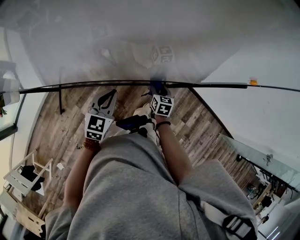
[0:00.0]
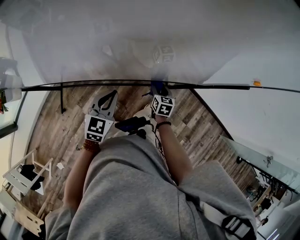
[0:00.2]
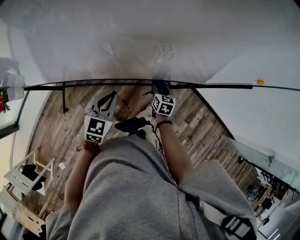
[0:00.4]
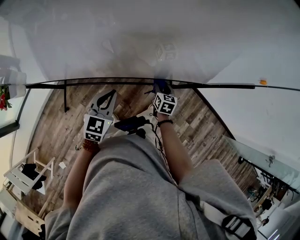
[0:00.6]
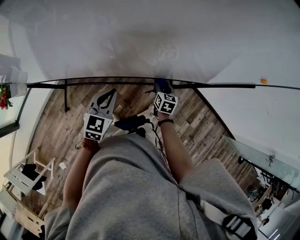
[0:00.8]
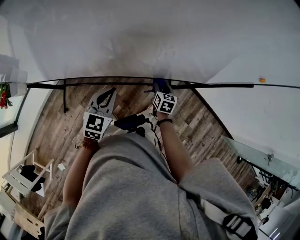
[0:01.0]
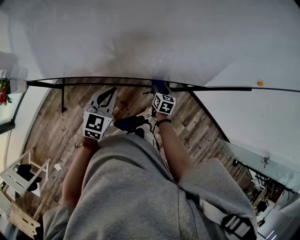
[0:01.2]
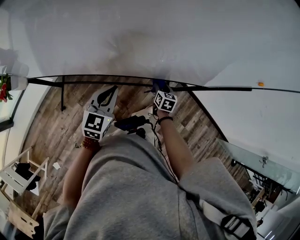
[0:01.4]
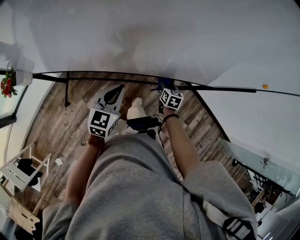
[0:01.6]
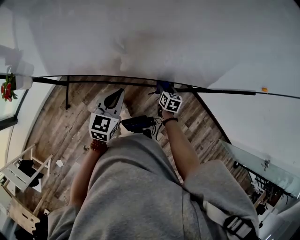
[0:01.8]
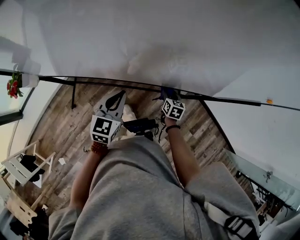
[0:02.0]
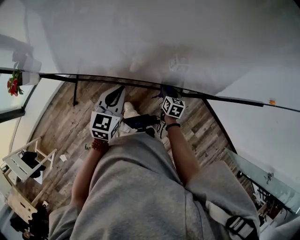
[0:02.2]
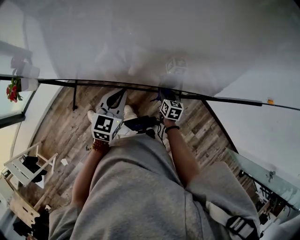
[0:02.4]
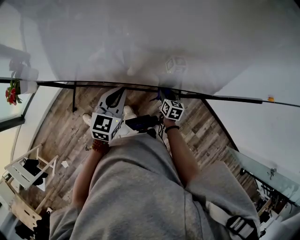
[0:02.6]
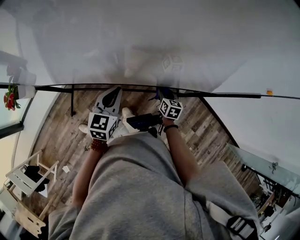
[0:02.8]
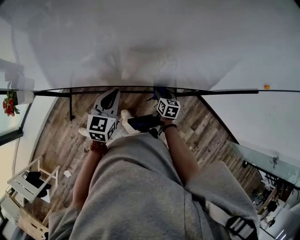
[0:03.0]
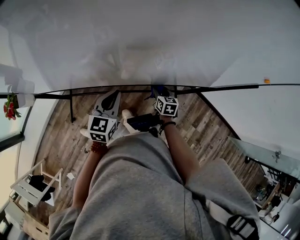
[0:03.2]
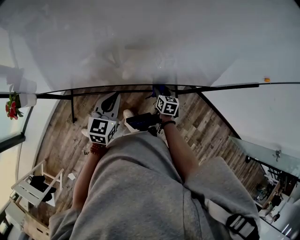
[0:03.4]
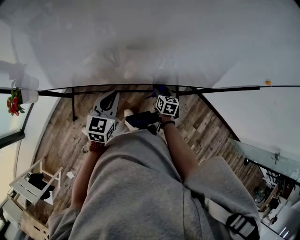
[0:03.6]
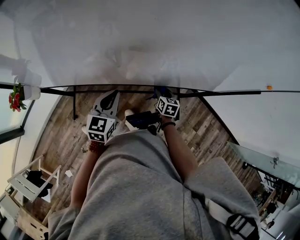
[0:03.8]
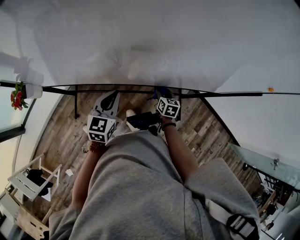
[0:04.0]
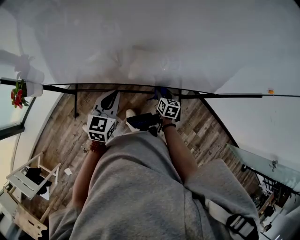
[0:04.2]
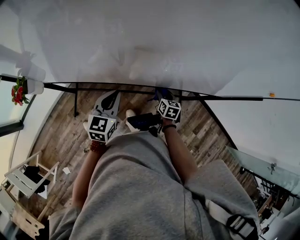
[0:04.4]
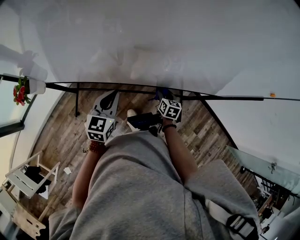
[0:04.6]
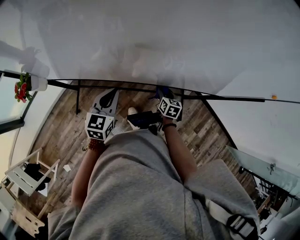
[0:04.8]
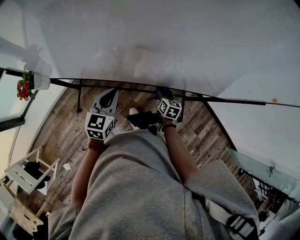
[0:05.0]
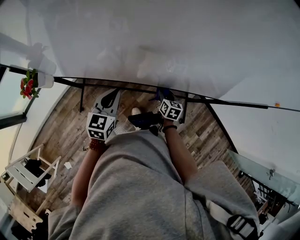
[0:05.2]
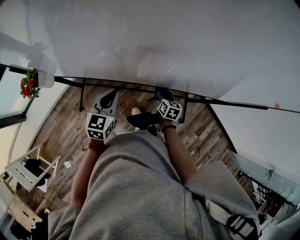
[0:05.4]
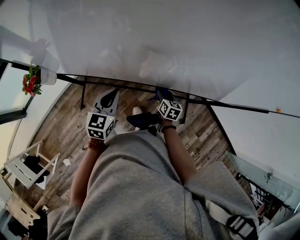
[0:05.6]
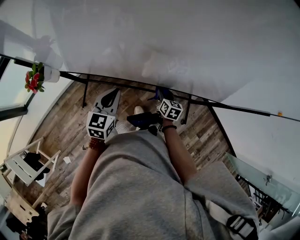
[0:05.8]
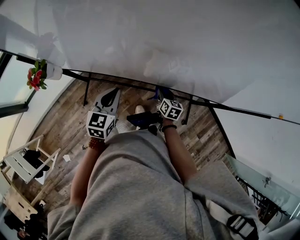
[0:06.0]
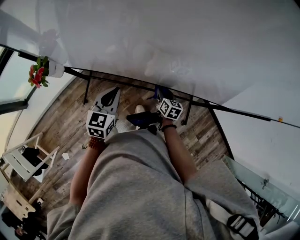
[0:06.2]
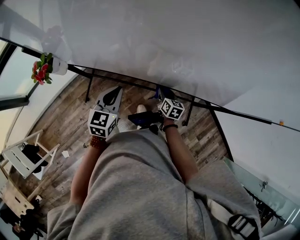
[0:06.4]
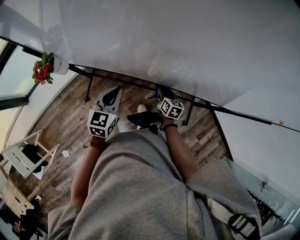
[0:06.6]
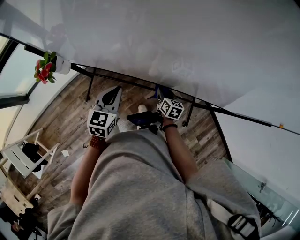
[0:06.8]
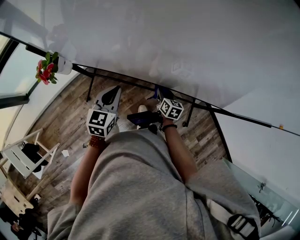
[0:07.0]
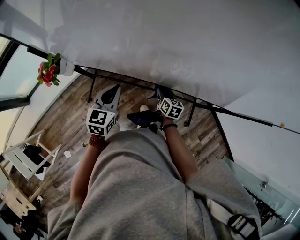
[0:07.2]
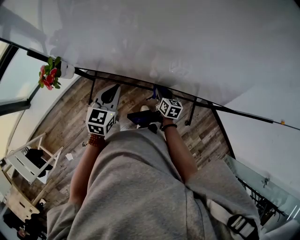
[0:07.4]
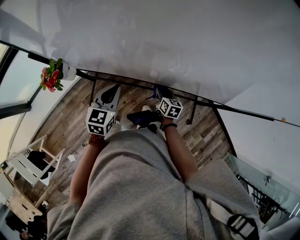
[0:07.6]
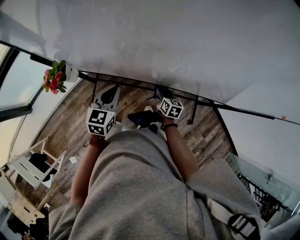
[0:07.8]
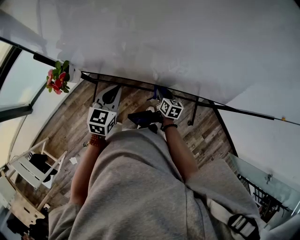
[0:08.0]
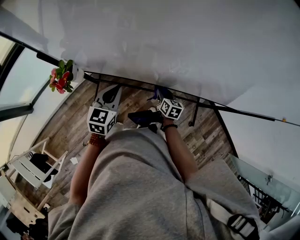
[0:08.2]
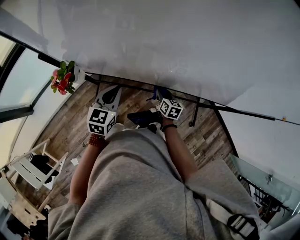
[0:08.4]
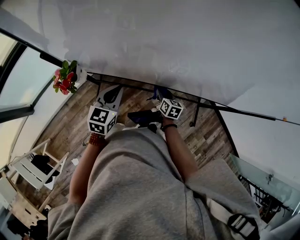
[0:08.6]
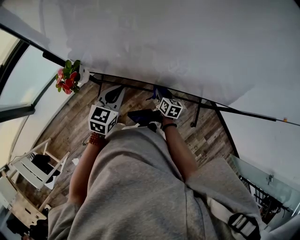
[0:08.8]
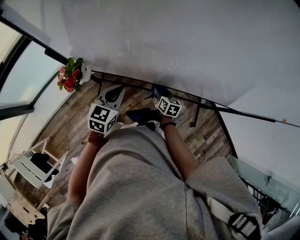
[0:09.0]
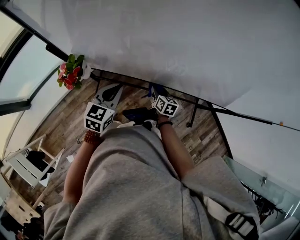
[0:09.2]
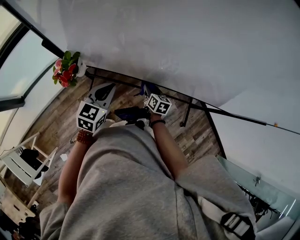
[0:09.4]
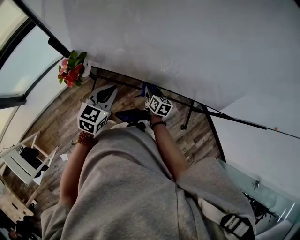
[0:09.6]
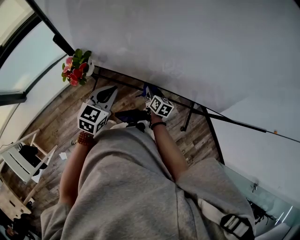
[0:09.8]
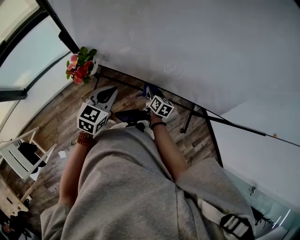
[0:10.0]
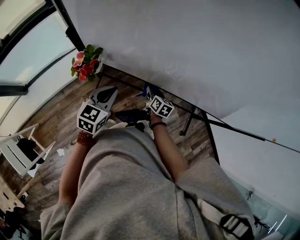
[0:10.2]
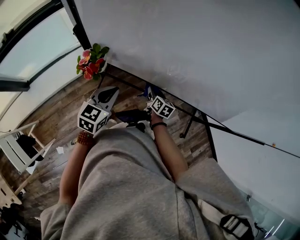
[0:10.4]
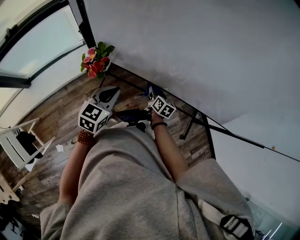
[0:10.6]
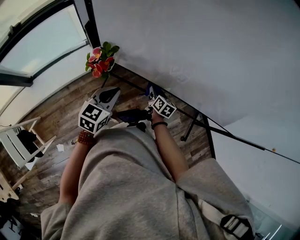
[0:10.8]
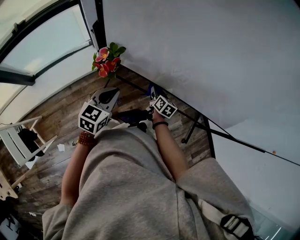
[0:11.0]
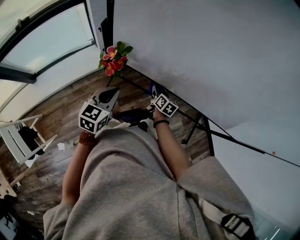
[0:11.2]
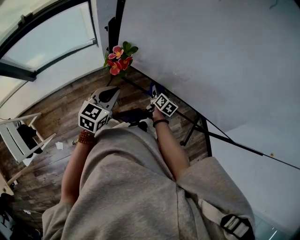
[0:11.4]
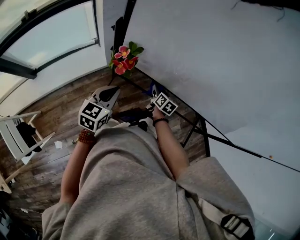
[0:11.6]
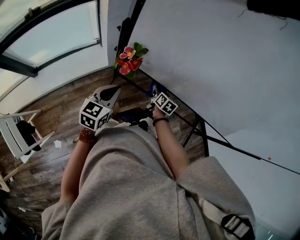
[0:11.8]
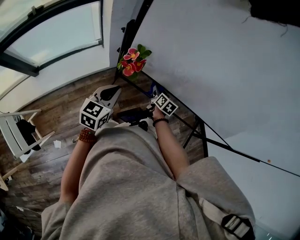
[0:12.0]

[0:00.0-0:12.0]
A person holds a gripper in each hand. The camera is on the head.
0.0 to 1.6 s: Both grippers move to the left, about 10 cm.
1.6 to 3.0 s: The grippers move only a little.
3.0 to 4.4 s: The two grippers go some 5 cm to the left.
4.4 to 6.0 s: Both grippers move to the left, approximately 10 cm.
6.0 to 7.6 s: Both grippers travel together to the left, approximately 10 cm.
7.6 to 9.0 s: The left gripper heads to the left, covering roughly 5 cm. Meanwhile the right gripper is displaced to the left by about 10 cm.
9.0 to 10.4 s: Both grippers travel together to the left, approximately 10 cm.
10.4 to 12.0 s: The two grippers go some 10 cm to the left.

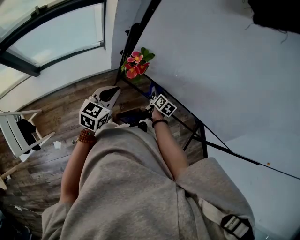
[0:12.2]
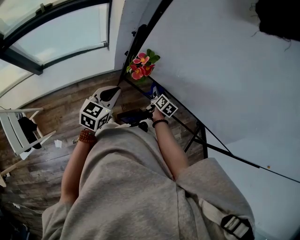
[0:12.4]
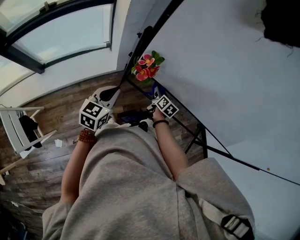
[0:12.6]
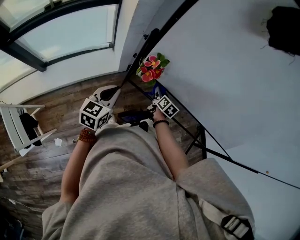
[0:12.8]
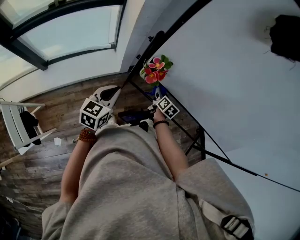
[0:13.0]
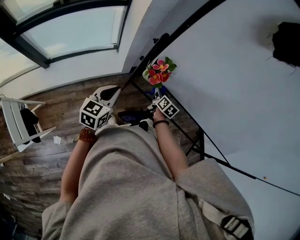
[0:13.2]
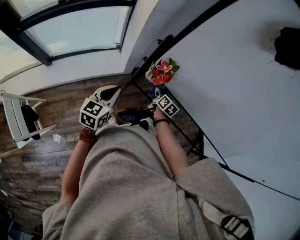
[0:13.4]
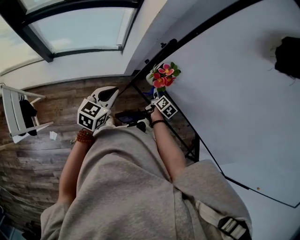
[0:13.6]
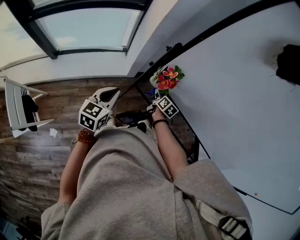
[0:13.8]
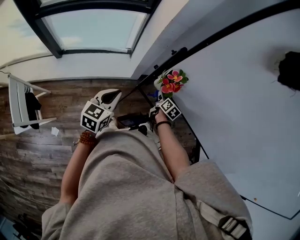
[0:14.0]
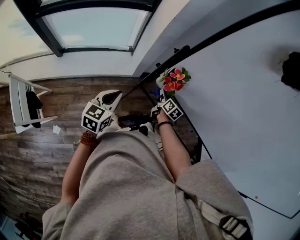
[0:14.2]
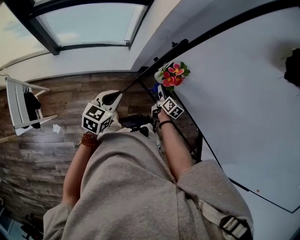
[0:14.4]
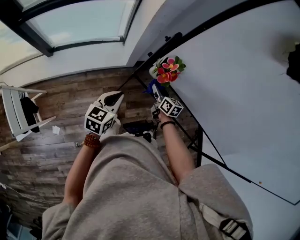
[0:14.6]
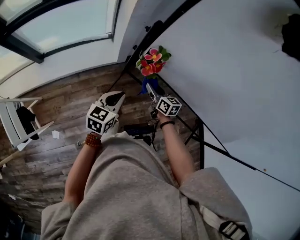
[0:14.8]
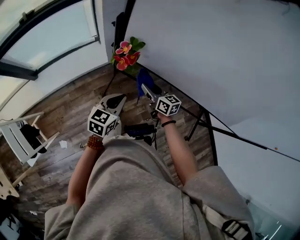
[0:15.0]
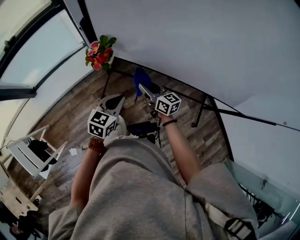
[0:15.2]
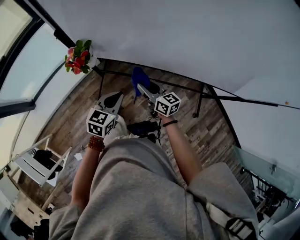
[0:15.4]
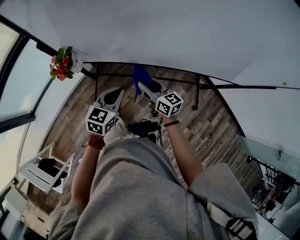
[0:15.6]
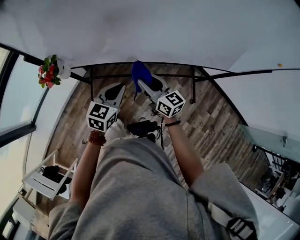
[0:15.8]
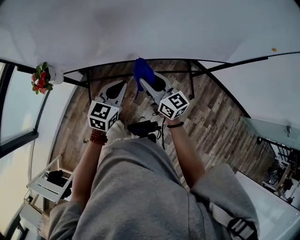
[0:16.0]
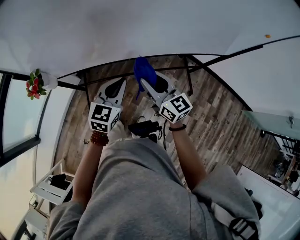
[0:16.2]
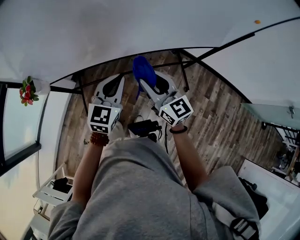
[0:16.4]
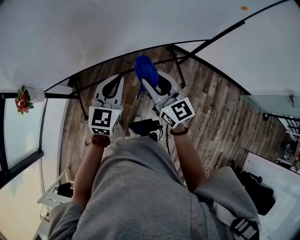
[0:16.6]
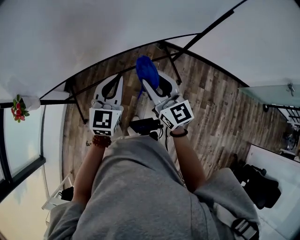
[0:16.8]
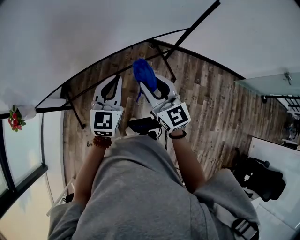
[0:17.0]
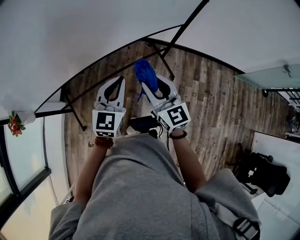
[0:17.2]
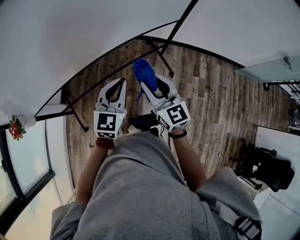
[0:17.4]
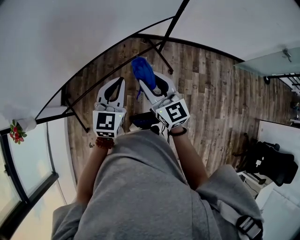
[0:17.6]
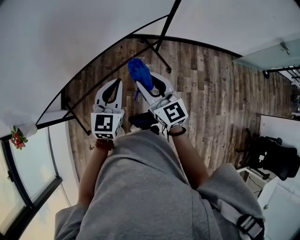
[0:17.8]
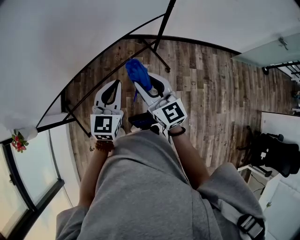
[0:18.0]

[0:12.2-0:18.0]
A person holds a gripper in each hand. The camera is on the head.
12.2 to 13.6 s: The two grippers go some 10 cm to the left.
13.6 to 15.0 s: The right gripper goes some 10 cm backward and upward, and swivels roughly 30 degrees; the left gripper heads to the right, covering some 15 cm.
15.0 to 16.6 s: The pair of grippers is taken roughly 40 cm. The right gripper changes its angle by some 50 degrees, while the left gripper rotates roughly 40 degrees.
16.6 to 18.0 s: The grippers both shift to the right by roughly 15 cm.

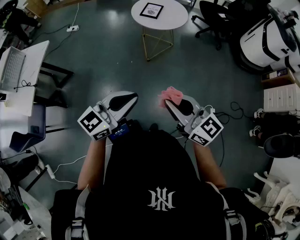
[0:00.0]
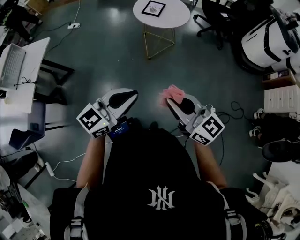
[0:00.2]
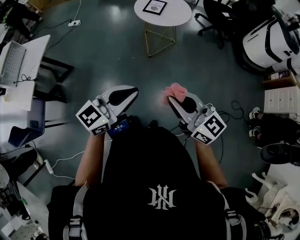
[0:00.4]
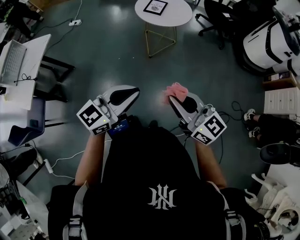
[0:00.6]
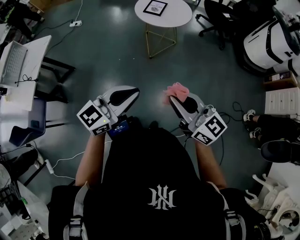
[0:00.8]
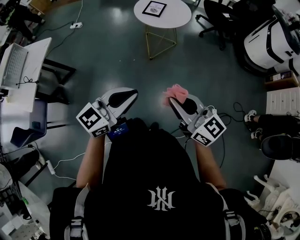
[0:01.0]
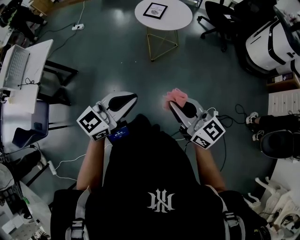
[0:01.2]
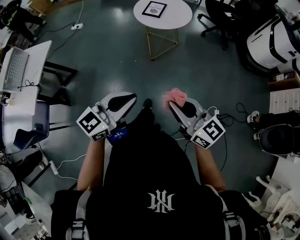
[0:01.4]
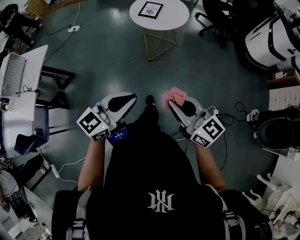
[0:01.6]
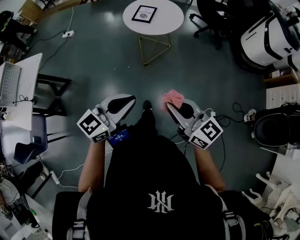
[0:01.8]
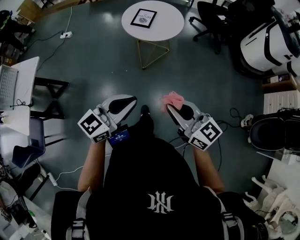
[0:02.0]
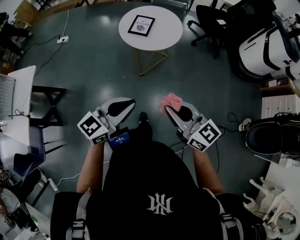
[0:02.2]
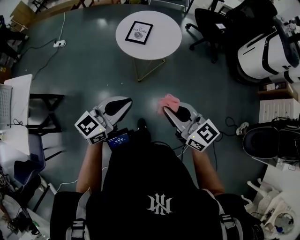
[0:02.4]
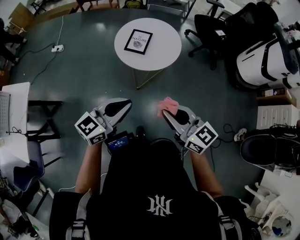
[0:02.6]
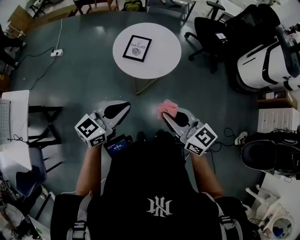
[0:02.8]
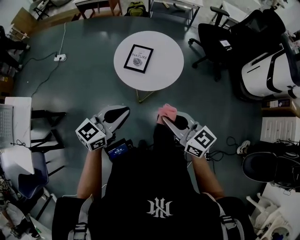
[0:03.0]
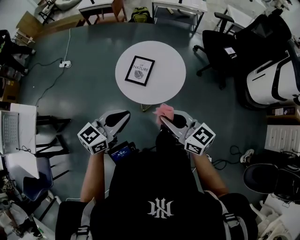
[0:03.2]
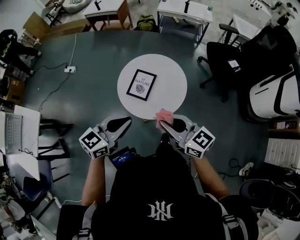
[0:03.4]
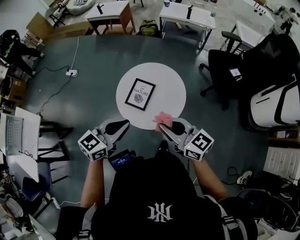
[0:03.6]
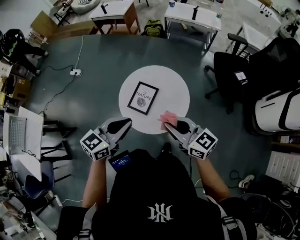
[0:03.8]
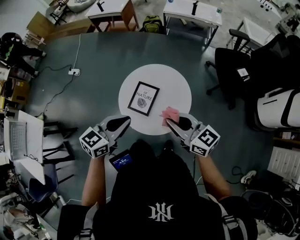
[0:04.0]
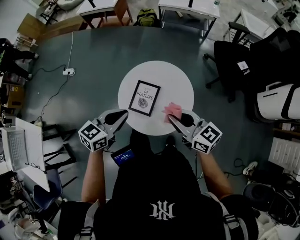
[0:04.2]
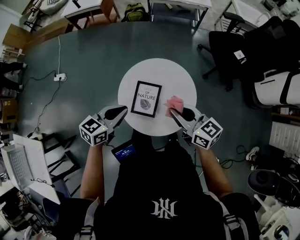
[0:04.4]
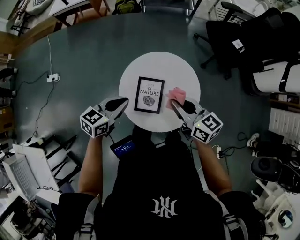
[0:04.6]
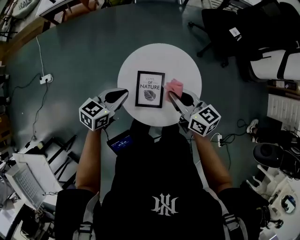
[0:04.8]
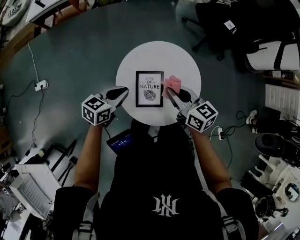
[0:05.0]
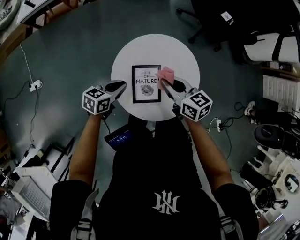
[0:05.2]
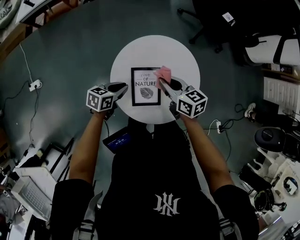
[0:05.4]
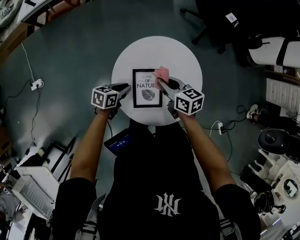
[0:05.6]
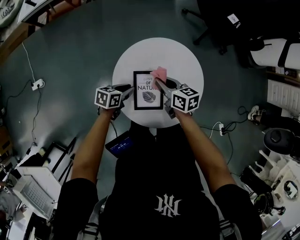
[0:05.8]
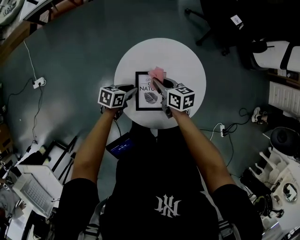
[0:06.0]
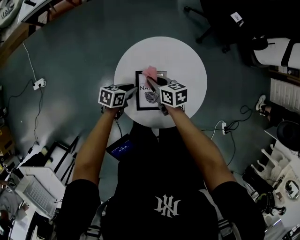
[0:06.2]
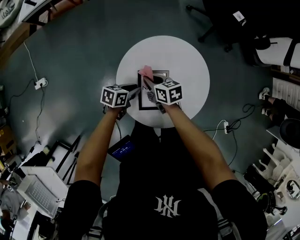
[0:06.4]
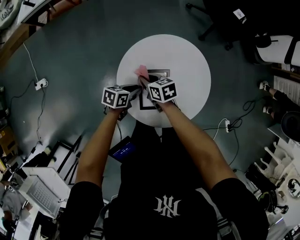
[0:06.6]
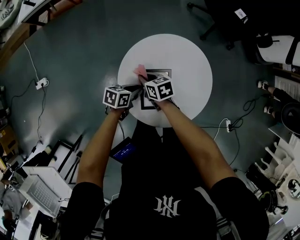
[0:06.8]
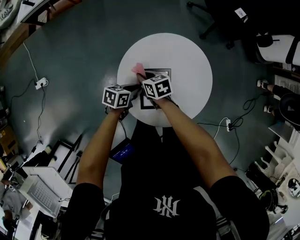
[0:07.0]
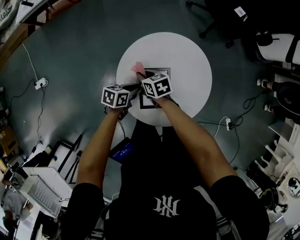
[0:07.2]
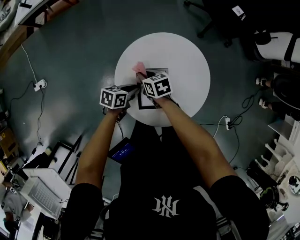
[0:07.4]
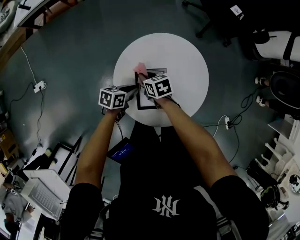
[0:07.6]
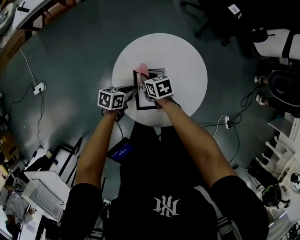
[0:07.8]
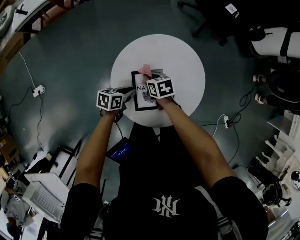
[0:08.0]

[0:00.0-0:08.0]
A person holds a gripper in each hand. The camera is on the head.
0.0 to 1.6 s: Both grippers travel together forward, about 5 cm.
1.6 to 3.2 s: Both grippers are carried forward, approximately 50 cm.
3.2 to 4.8 s: The left gripper moves roughly 40 cm, and swivels about 20 degrees, while the right gripper moves roughly 35 cm, and rotates about 30 degrees.
4.8 to 6.4 s: The left gripper heads downward, covering about 20 cm, and rotates approximately 30 degrees; the right gripper is displaced downward and to the left by roughly 25 cm, and changes its angle by roughly 20 degrees.
6.4 to 8.0 s: There are only small adjustments of the grippers.
